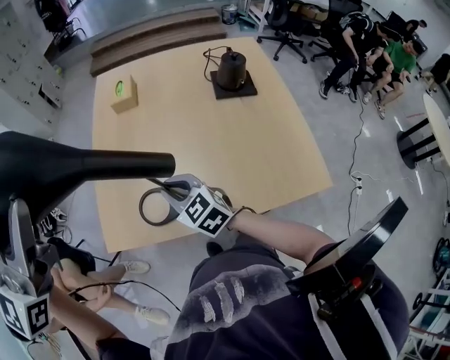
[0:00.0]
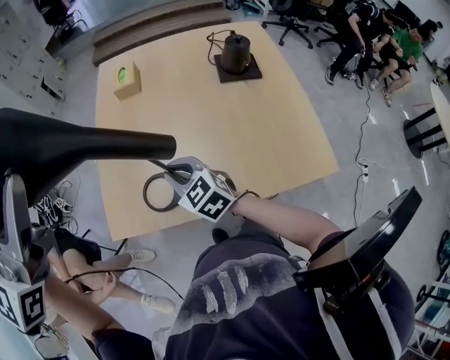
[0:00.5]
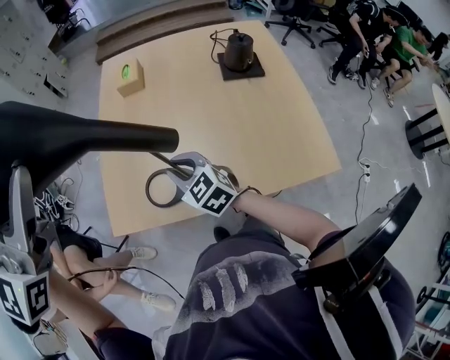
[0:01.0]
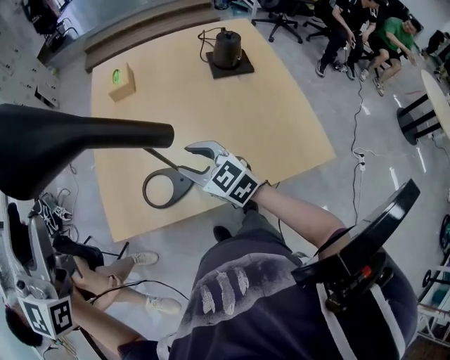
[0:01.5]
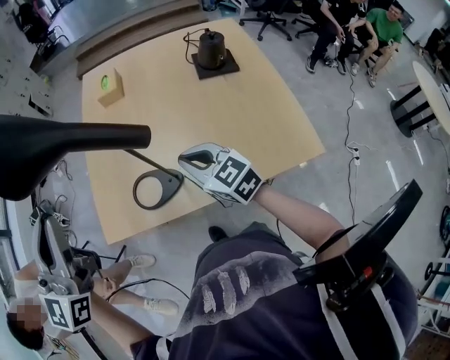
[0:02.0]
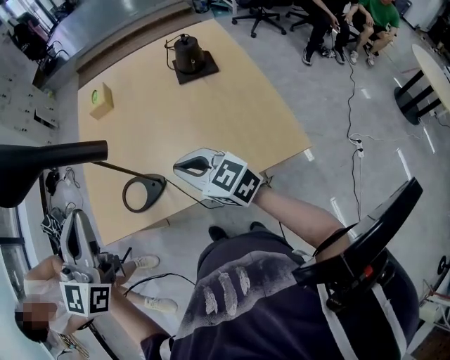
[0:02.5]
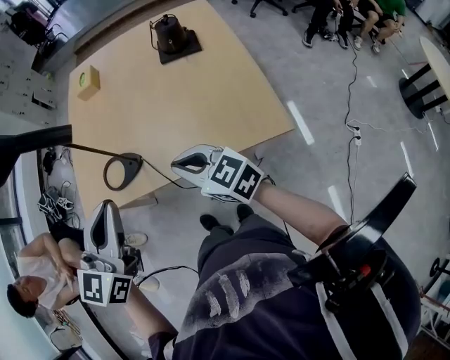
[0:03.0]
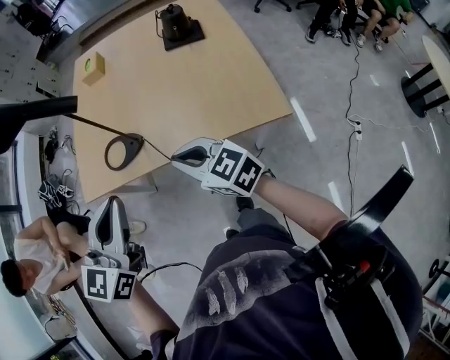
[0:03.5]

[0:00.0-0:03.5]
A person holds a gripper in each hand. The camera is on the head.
0:00.0 to 0:02.0: The right gripper shifts approximately 10 cm to the right and backward, and opens, then closes once more, while the left gripper goes some 10 cm downward and backward, and closes up.
0:02.0 to 0:03.5: The right gripper is displaced backward and to the right by about 25 cm, while the left gripper shifts approximately 35 cm backward, to the right and downward, and changes its angle by about 20 degrees.

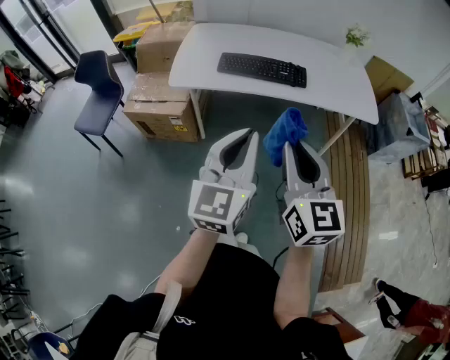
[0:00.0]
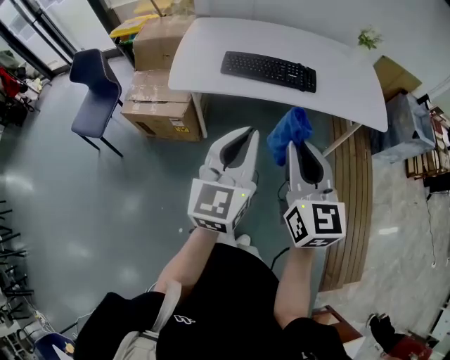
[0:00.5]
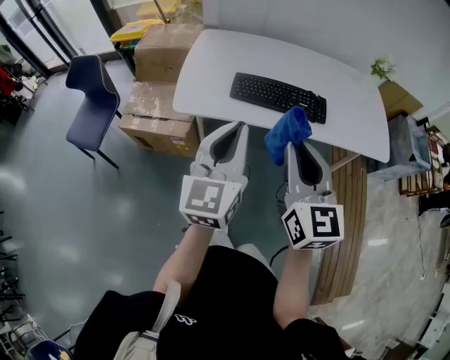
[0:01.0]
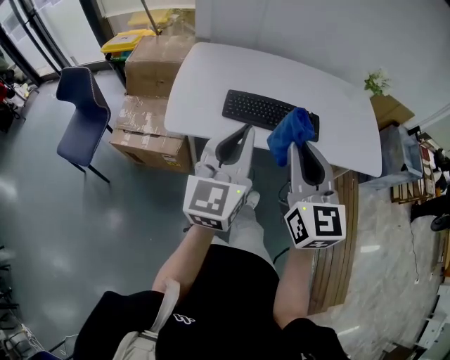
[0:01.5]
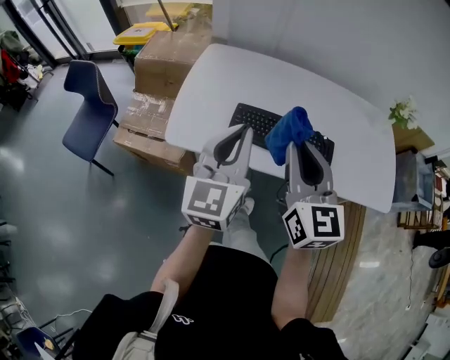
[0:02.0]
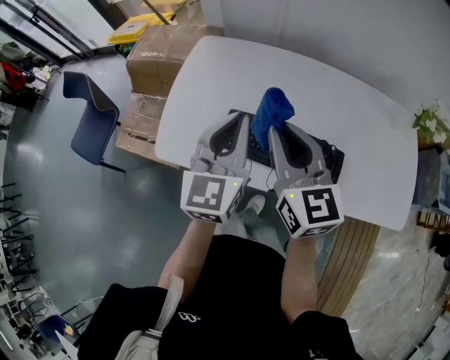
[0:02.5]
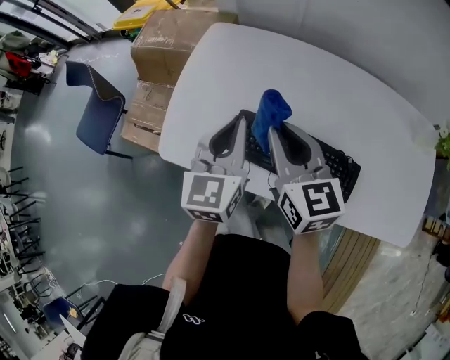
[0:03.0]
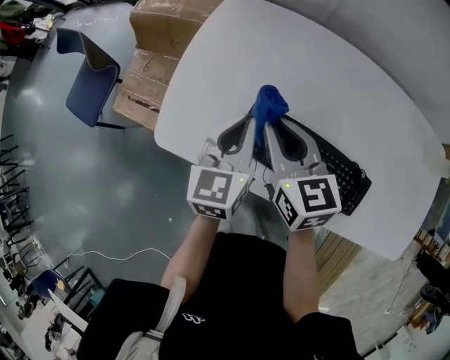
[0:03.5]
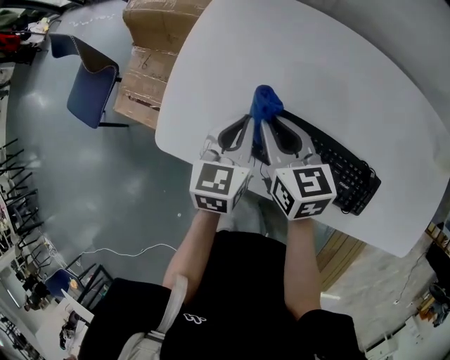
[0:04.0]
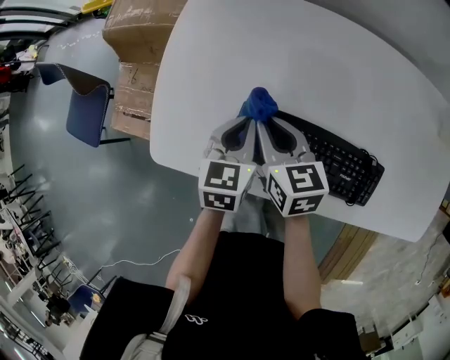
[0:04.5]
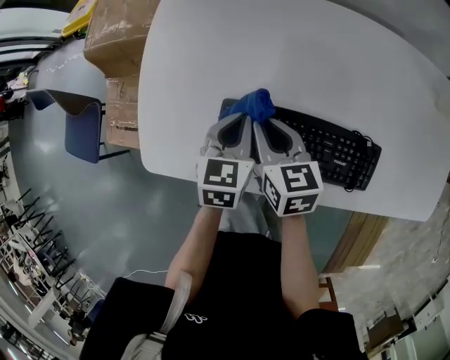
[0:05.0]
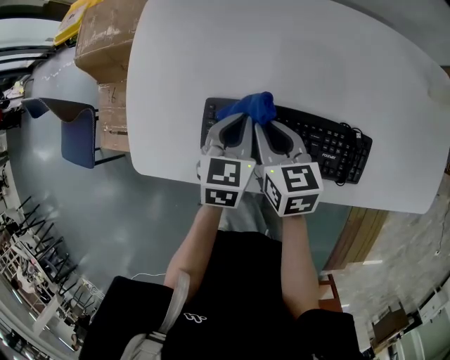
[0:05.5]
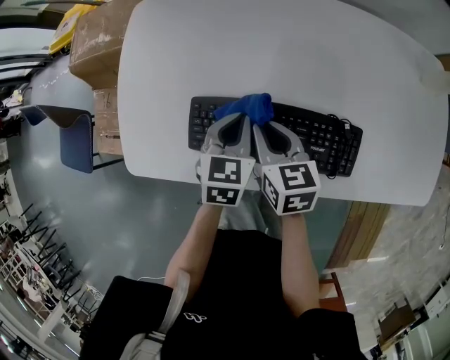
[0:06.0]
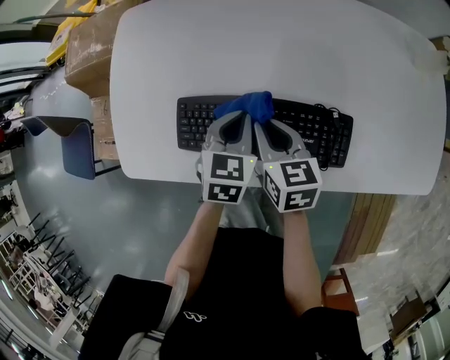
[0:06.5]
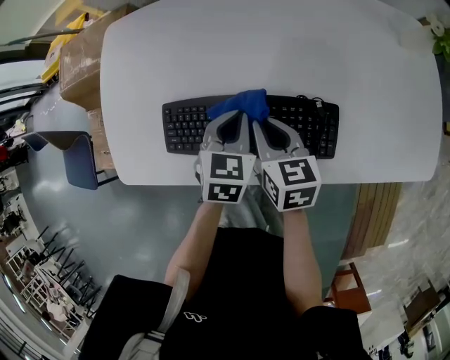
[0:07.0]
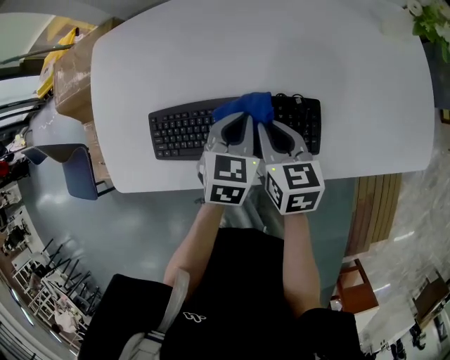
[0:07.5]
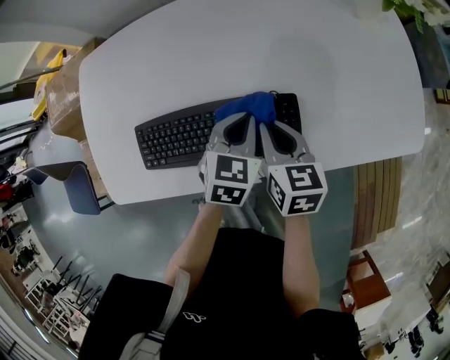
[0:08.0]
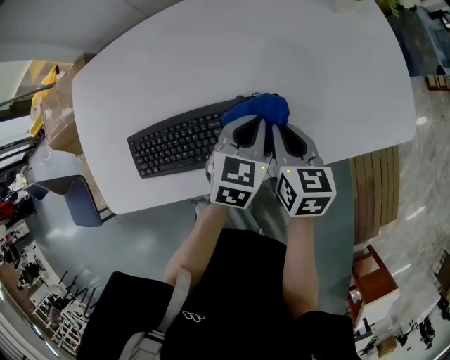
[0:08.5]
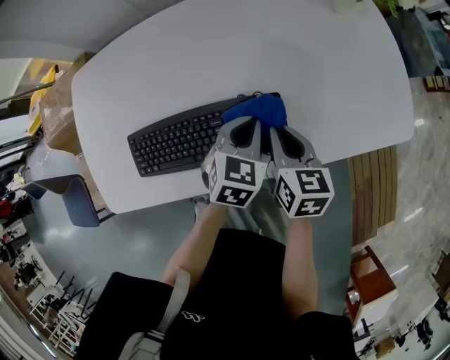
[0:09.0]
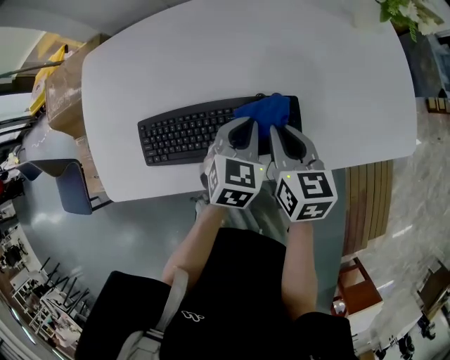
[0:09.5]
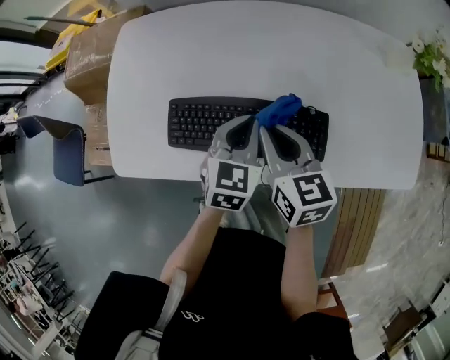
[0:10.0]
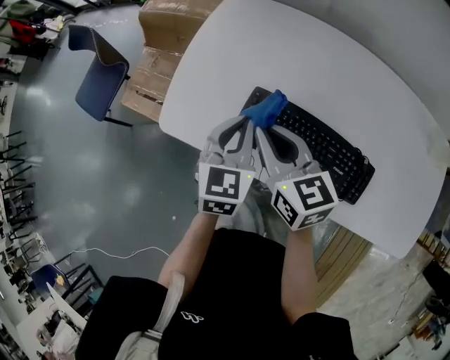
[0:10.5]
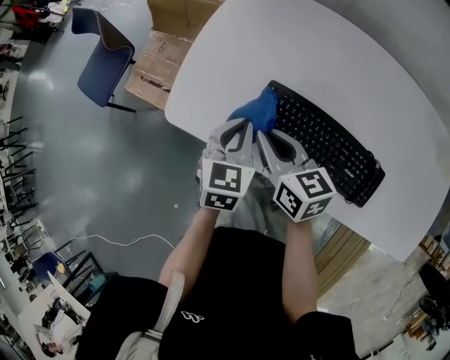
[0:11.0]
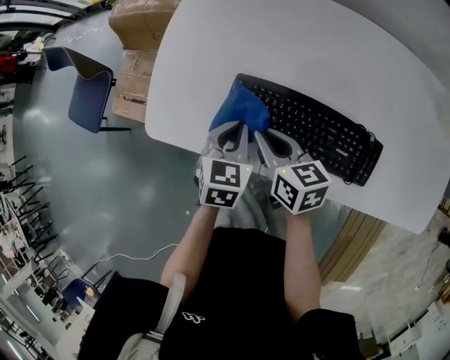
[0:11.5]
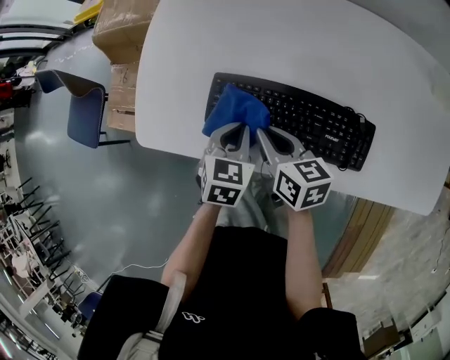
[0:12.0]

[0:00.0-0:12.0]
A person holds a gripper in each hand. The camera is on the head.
0:00.0 to 0:02.0: Both grippers travel together forward, about 40 cm.
0:02.0 to 0:04.0: Both grippers move downward and forward, about 35 cm. The left gripper tips its fingers downward by about 30 degrees. The right gripper rotates some 40 degrees.
0:04.0 to 0:06.0: The grippers both shift to the right and downward by about 15 cm. The left gripper turns by some 20 degrees.
0:06.0 to 0:08.0: Both grippers travel together to the right, roughly 20 cm.
0:08.0 to 0:10.0: The grippers both shift to the left and upward by approximately 10 cm. The right gripper turns by some 20 degrees.
0:10.0 to 0:12.0: The left gripper moves roughly 15 cm. The right gripper shifts by roughly 15 cm, and rotates approximately 20 degrees.

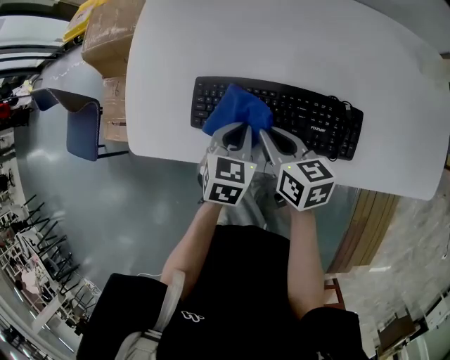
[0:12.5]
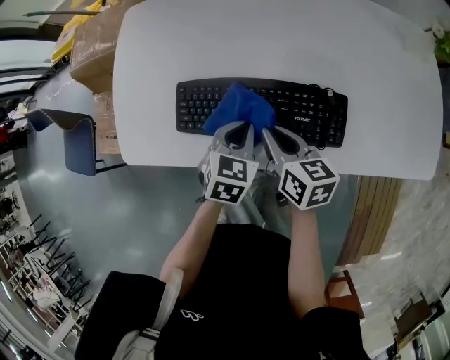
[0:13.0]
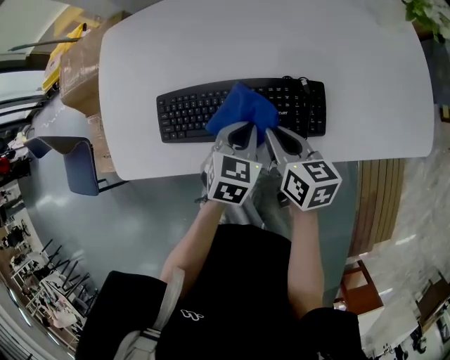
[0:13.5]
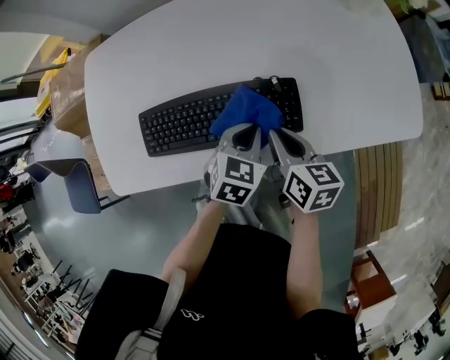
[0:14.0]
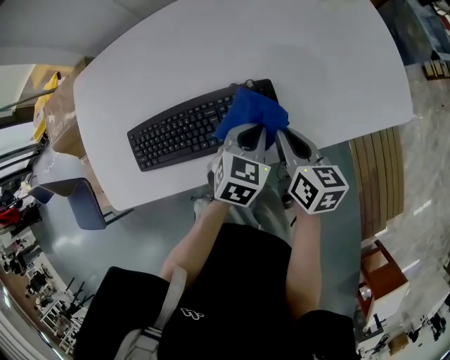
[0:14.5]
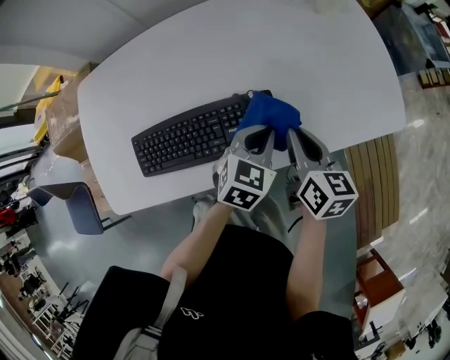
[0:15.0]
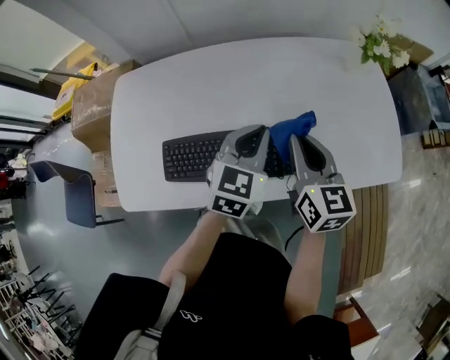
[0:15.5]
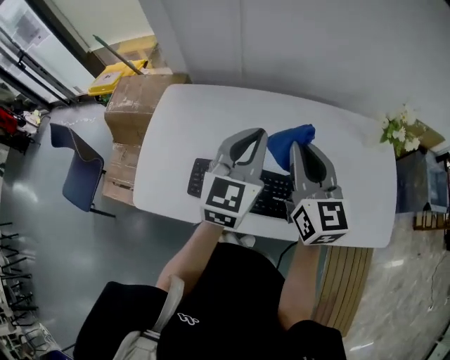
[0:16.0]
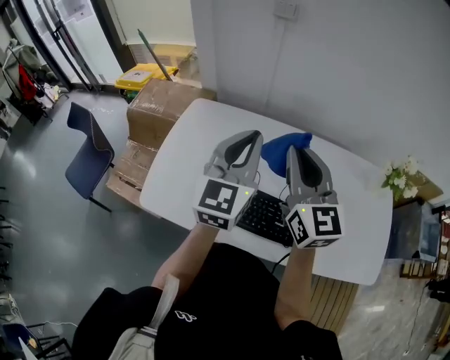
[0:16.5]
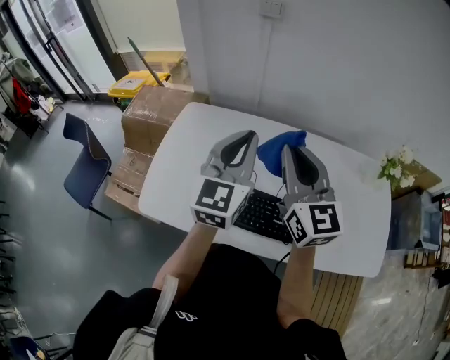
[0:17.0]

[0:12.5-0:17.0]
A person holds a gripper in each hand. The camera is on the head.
0:12.5 to 0:14.5: The left gripper changes place by roughly 25 cm, and swivels about 30 degrees, while the right gripper ends up some 25 cm from where it was, and changes its angle by some 30 degrees.
0:14.5 to 0:17.0: Both grippers travel together upward, about 35 cm. The right gripper tilts its fingers roughly 30 degrees upward, while the left gripper angles its fingers upward, by some 50 degrees.

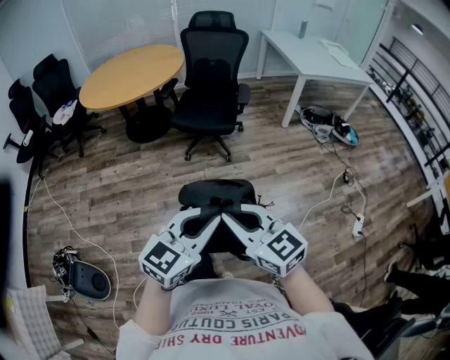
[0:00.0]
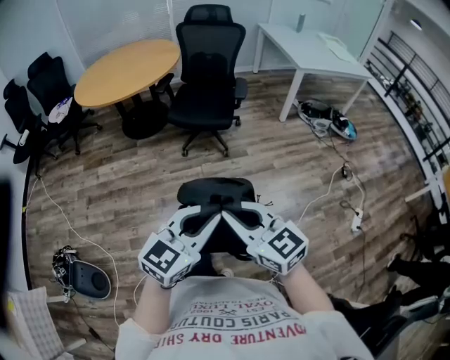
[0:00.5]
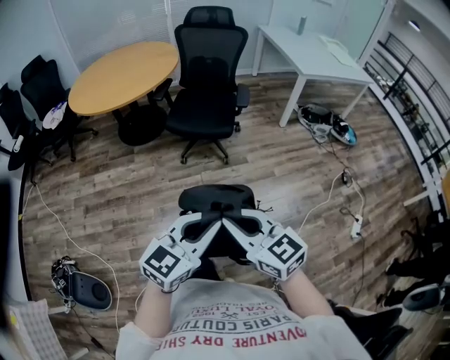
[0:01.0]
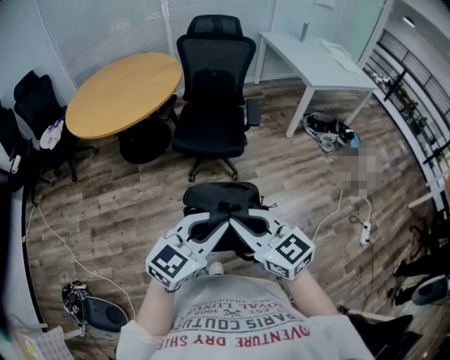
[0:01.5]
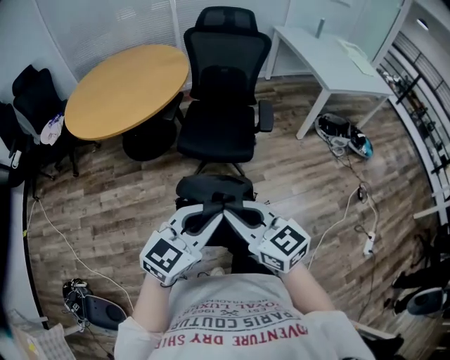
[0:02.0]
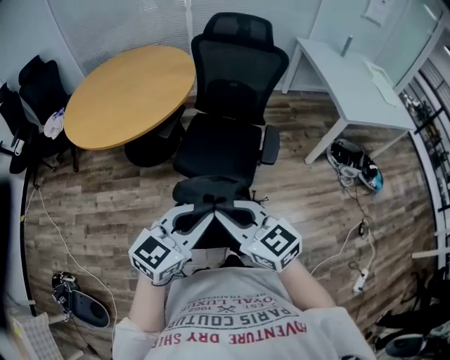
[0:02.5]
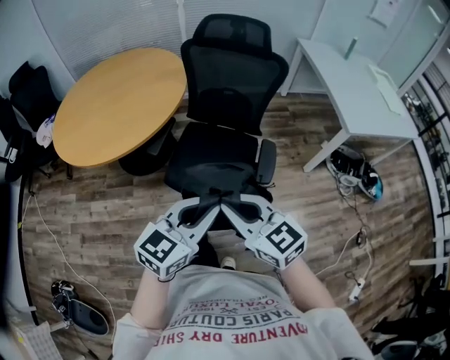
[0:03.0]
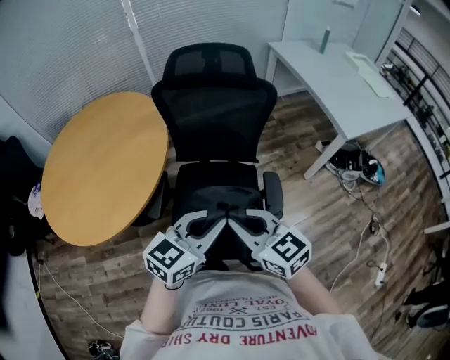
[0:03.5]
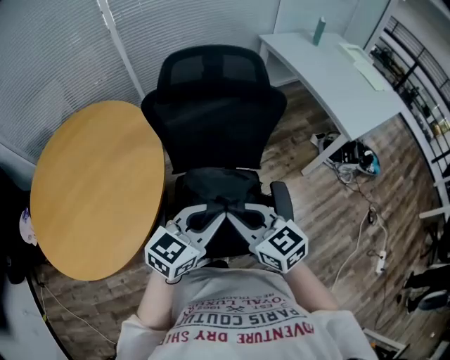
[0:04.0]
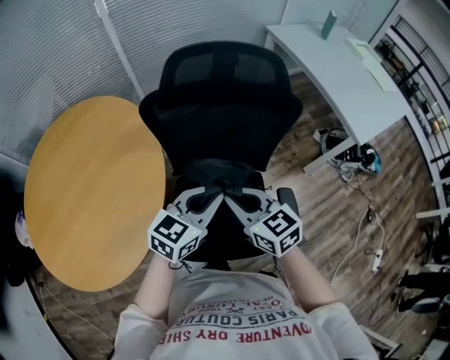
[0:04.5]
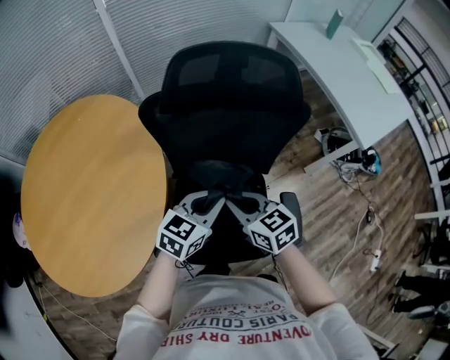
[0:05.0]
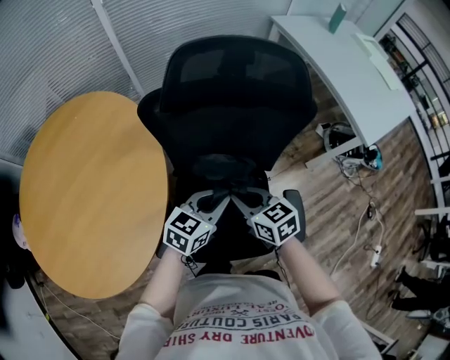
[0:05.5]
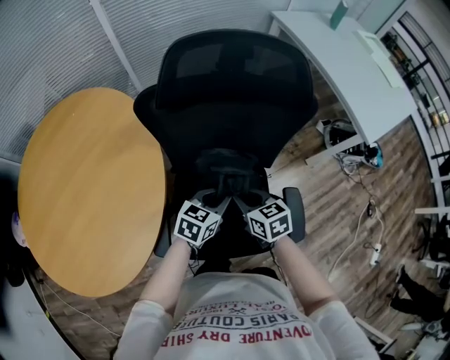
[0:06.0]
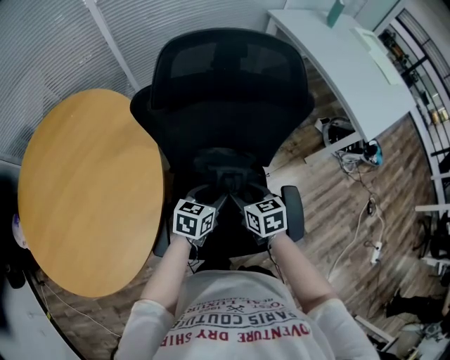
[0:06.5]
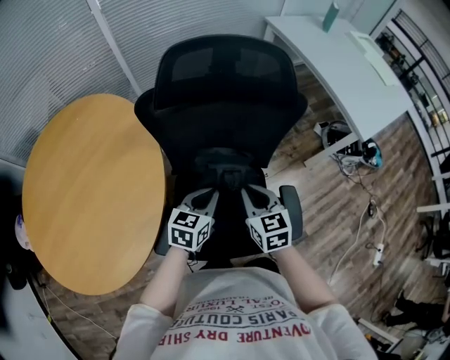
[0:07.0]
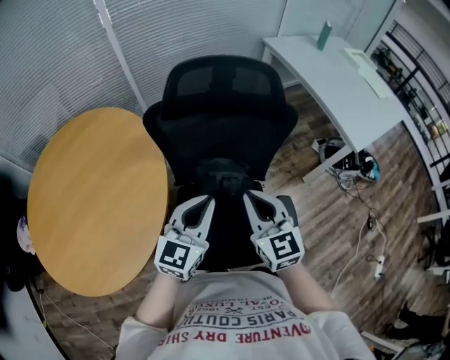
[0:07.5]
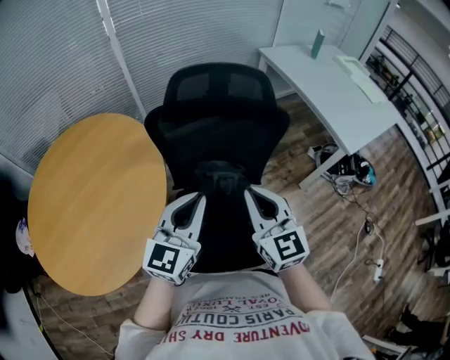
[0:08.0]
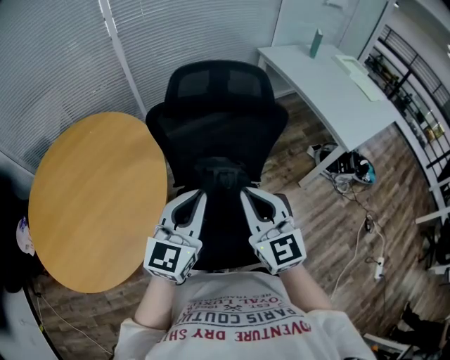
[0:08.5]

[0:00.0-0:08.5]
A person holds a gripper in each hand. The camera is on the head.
0:00.0 to 0:02.0: Both grippers travel together forward, approximately 30 cm.
0:02.0 to 0:04.0: The pair of grippers is taken forward, some 60 cm.
0:04.0 to 0:06.5: The grippers both shift downward and forward by about 25 cm. The right gripper turns by some 30 degrees, and opens its fingers. The left gripper swivels approximately 30 degrees, and opens its fingers.
0:06.5 to 0:08.5: Both grippers travel together upward, about 30 cm. The left gripper points its fingers approximately 30 degrees further upward, and closes, while the right gripper angles its fingers upward, by some 40 degrees, and closes up.
